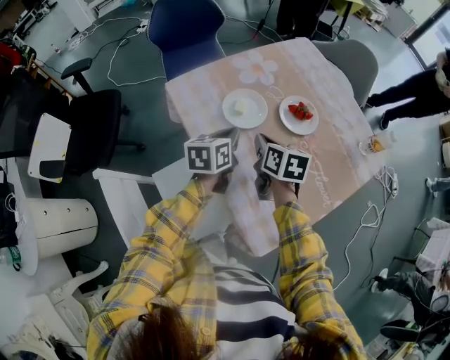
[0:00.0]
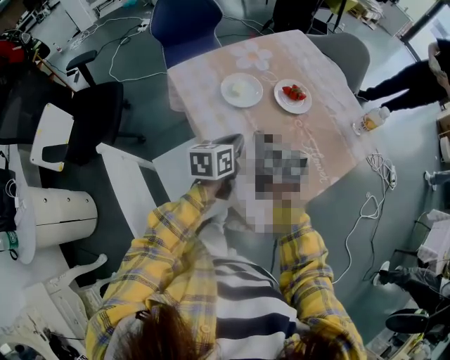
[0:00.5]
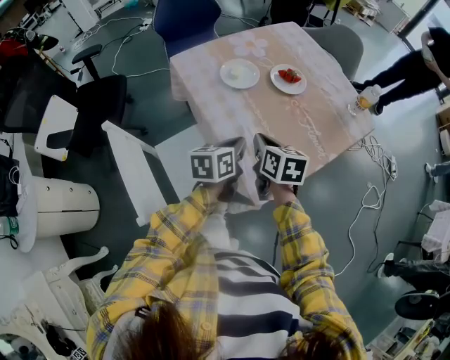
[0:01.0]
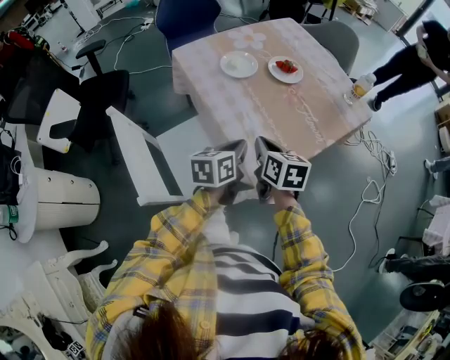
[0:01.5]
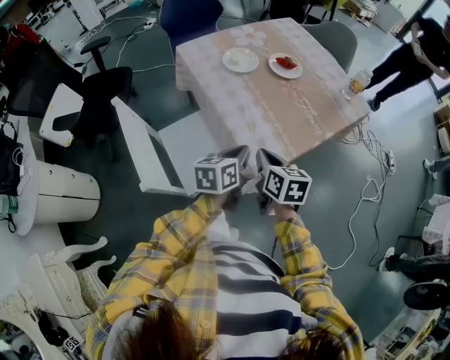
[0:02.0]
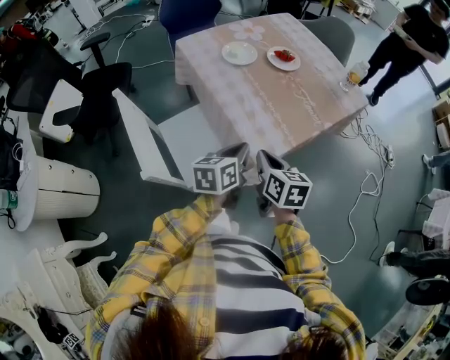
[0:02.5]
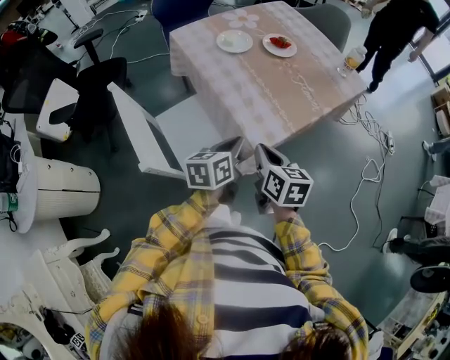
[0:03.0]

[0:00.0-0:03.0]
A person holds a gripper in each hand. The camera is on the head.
0:00.0 to 0:01.5: Both grippers move backward, some 25 cm.
0:01.5 to 0:03.0: Both grippers move backward, some 10 cm.

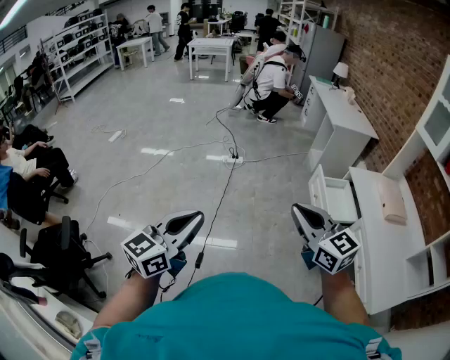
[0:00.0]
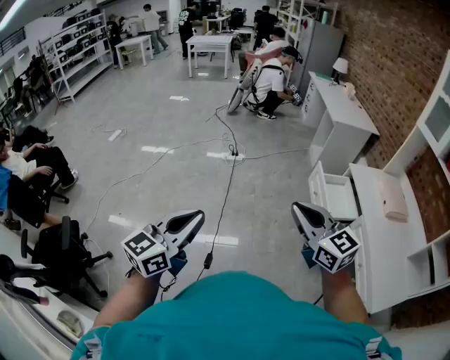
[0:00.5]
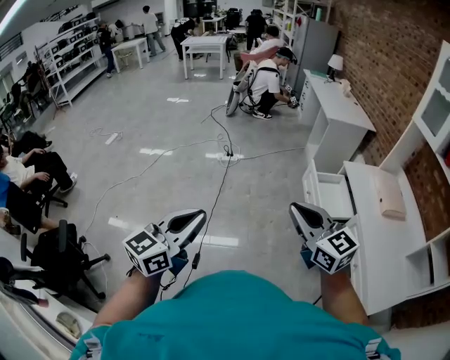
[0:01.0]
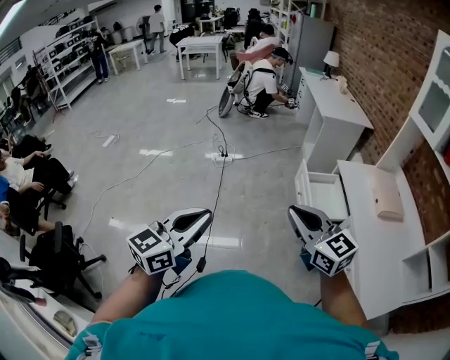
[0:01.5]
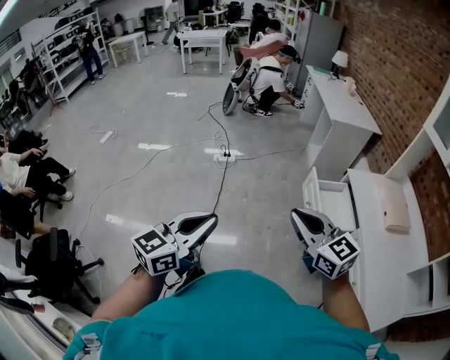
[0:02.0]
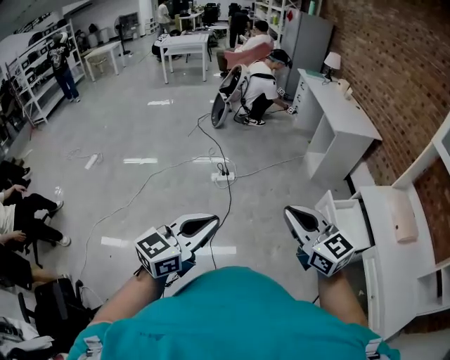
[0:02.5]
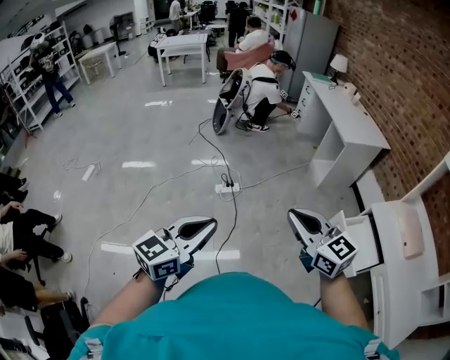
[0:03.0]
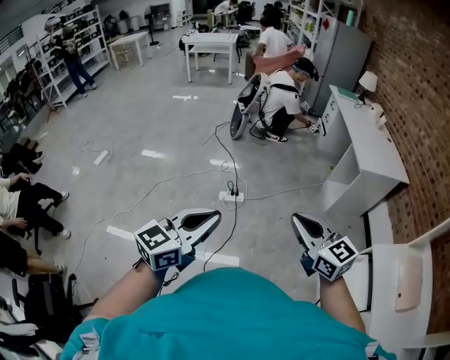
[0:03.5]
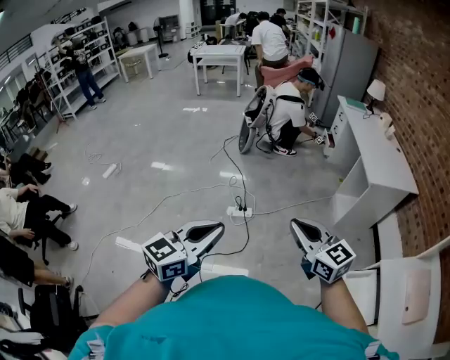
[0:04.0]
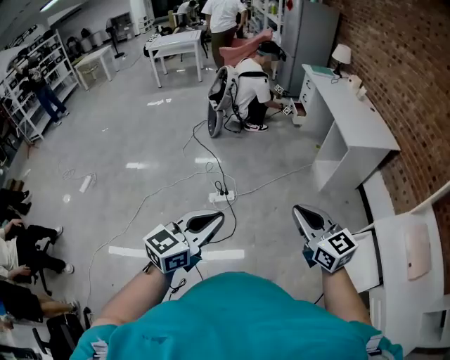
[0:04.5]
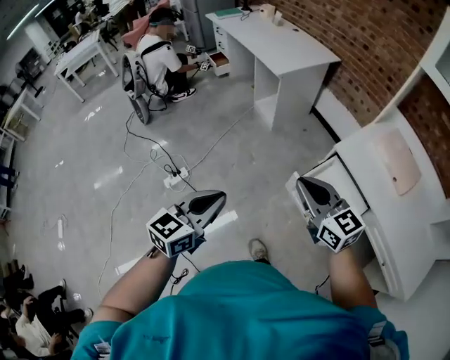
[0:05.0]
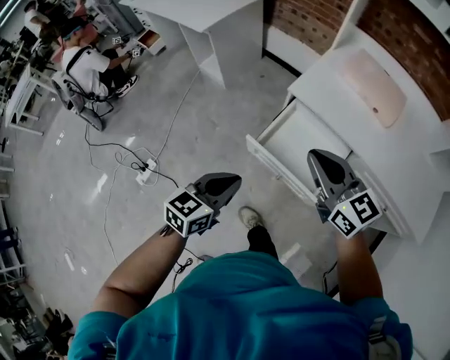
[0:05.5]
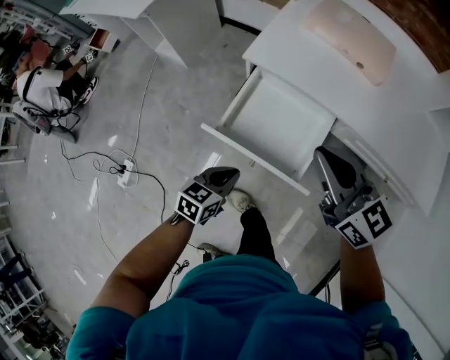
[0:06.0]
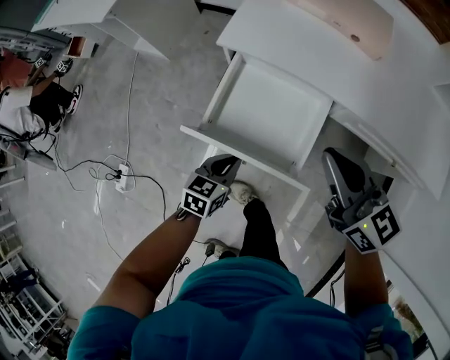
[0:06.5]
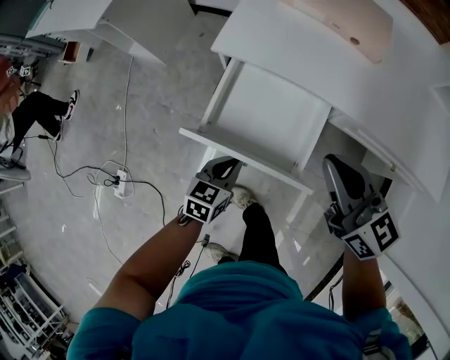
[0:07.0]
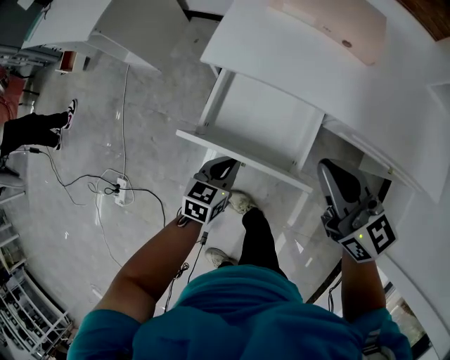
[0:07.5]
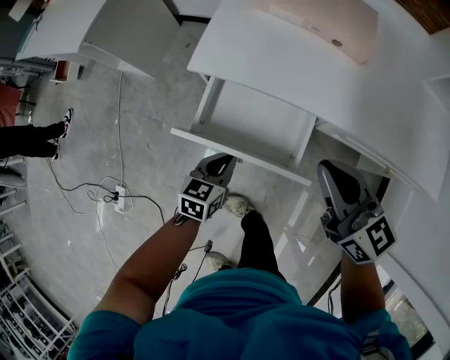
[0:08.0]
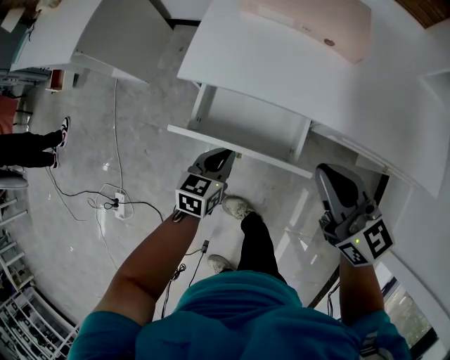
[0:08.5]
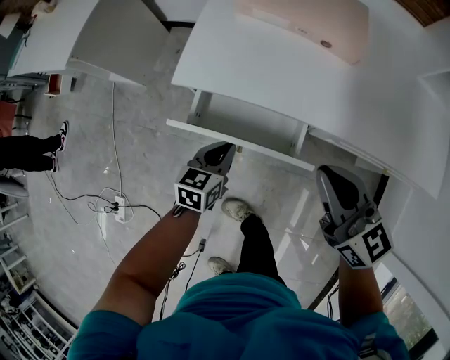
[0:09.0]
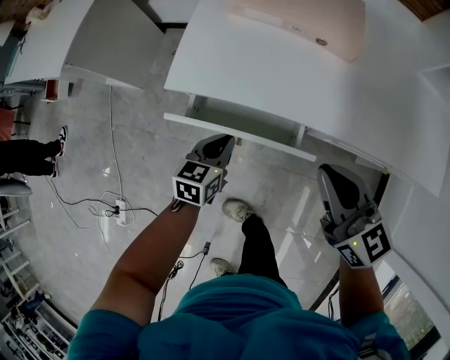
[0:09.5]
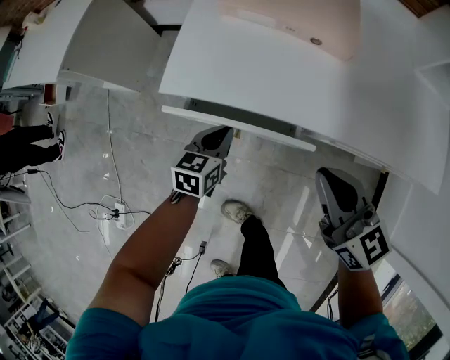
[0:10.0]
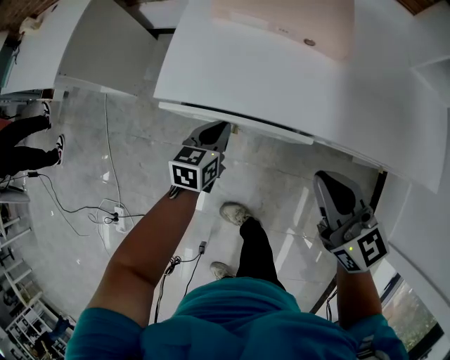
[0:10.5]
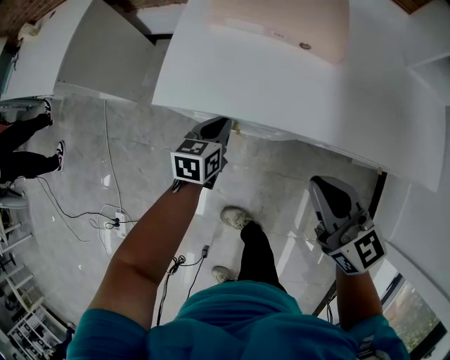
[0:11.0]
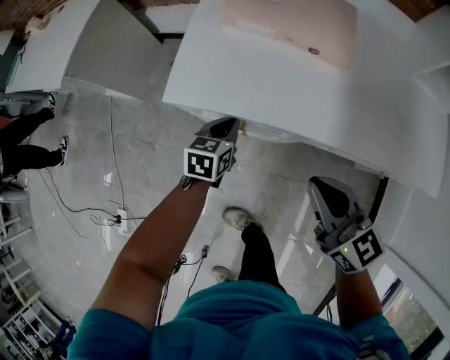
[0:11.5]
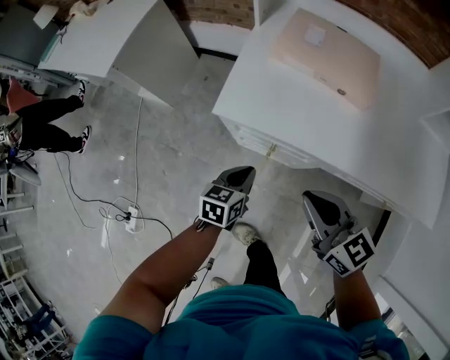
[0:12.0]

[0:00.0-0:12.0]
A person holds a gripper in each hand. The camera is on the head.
0:00.0 to 0:02.0: The right gripper is displaced forward and to the right by some 15 cm. The left gripper goes roughly 20 cm to the right and forward.
0:02.0 to 0:04.0: Both grippers are carried forward, some 50 cm.
0:04.0 to 0:06.0: The pair of grippers is taken about 50 cm. The right gripper swivels some 60 degrees; the left gripper tips its fingers downward by approximately 30 degrees.
0:06.0 to 0:08.0: The right gripper is displaced to the right and downward by about 10 cm. Meanwhile the left gripper heads forward, to the right and downward, covering some 15 cm.
0:08.0 to 0:10.0: The right gripper shifts by roughly 5 cm; the left gripper moves forward, roughly 10 cm.
0:10.0 to 0:12.0: The right gripper moves to the left, some 10 cm; the left gripper changes place by roughly 5 cm.

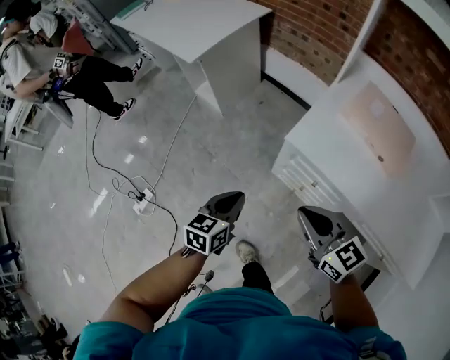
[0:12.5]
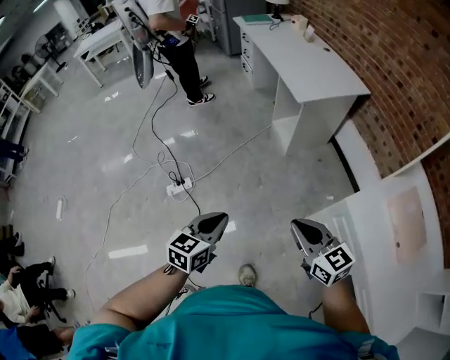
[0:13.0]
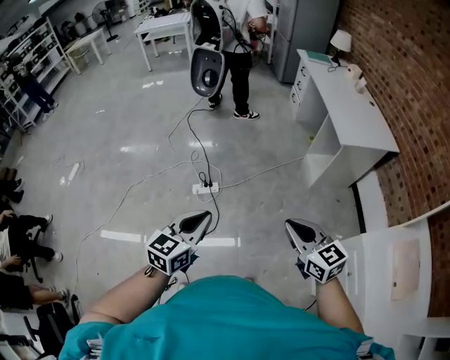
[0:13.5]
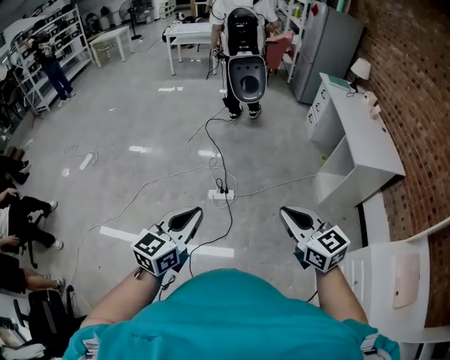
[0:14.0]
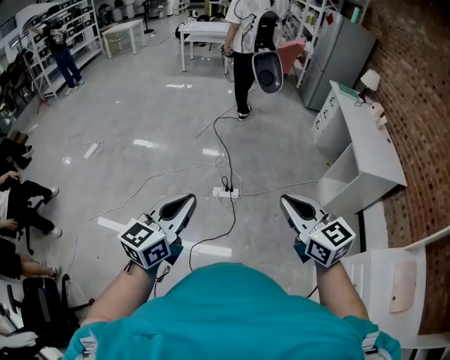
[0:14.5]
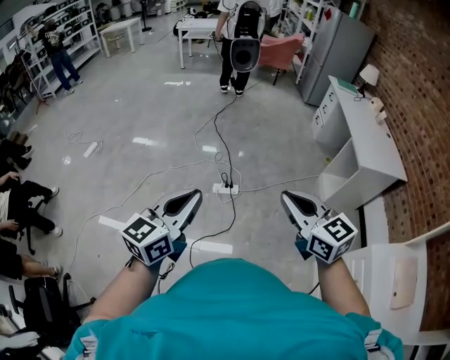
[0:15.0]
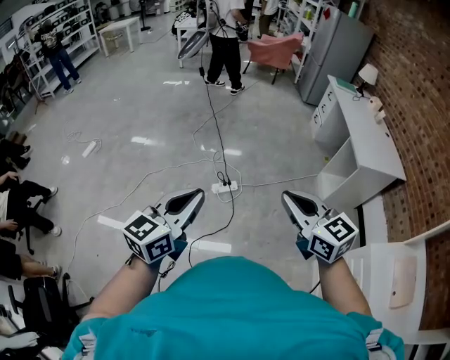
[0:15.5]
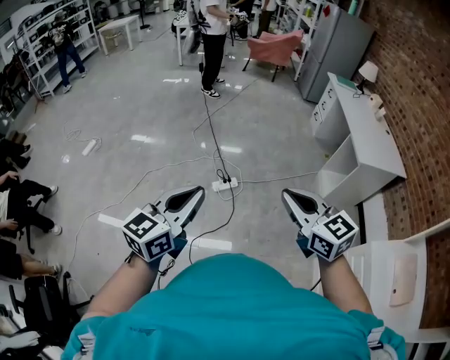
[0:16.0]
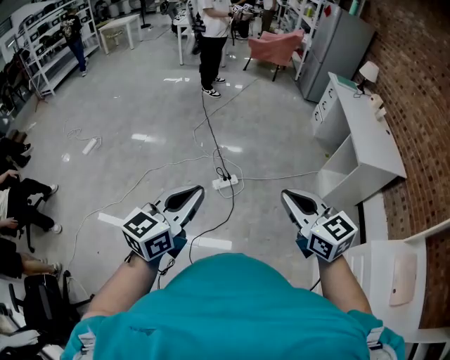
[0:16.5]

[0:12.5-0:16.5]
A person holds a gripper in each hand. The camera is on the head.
0:12.5 to 0:14.5: The pair of grippers is taken some 60 cm. The right gripper swivels some 50 degrees. Meanwhile the left gripper changes its angle by approximately 60 degrees.
0:14.5 to 0:16.5: There are only small adjustments of the grippers.

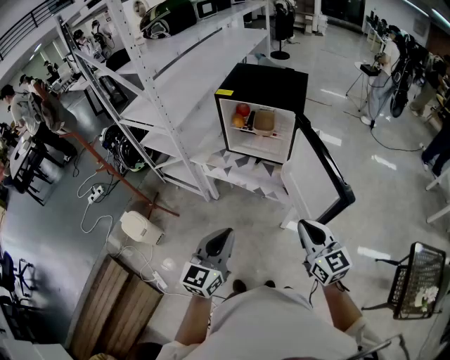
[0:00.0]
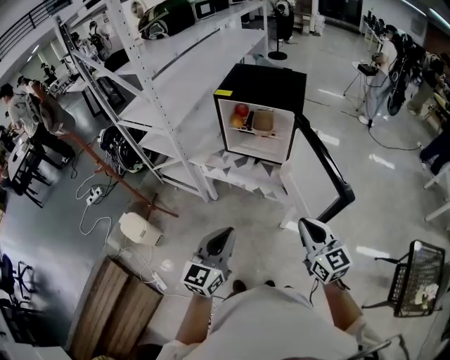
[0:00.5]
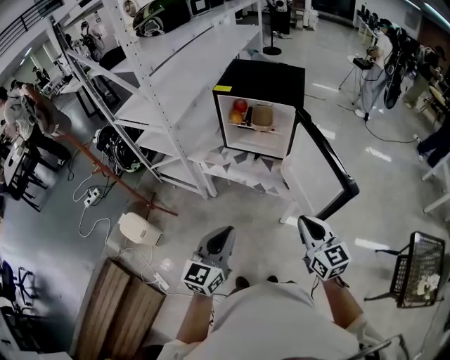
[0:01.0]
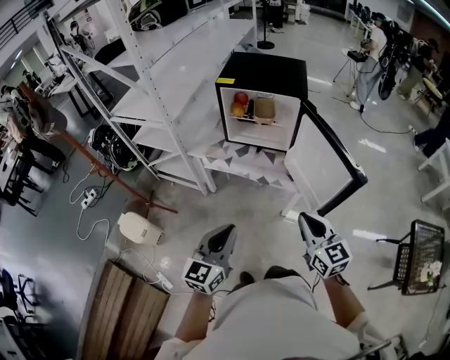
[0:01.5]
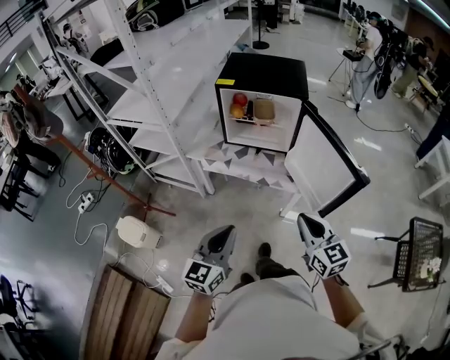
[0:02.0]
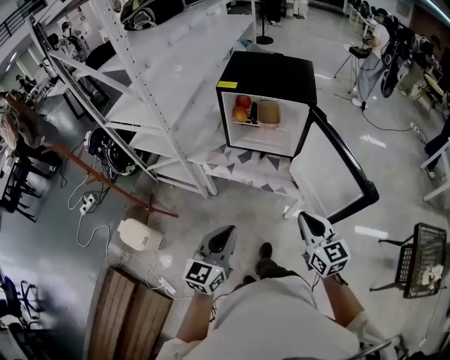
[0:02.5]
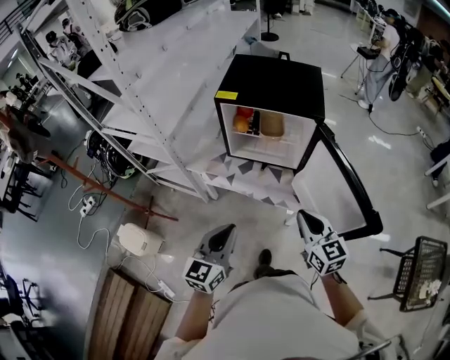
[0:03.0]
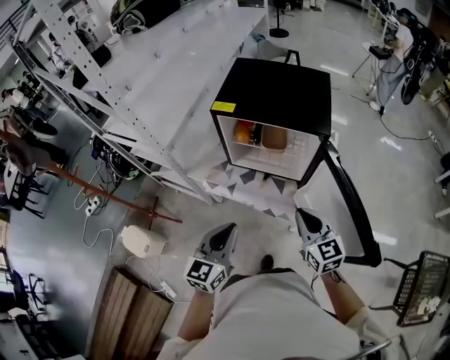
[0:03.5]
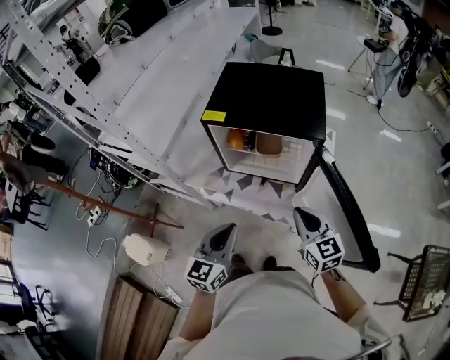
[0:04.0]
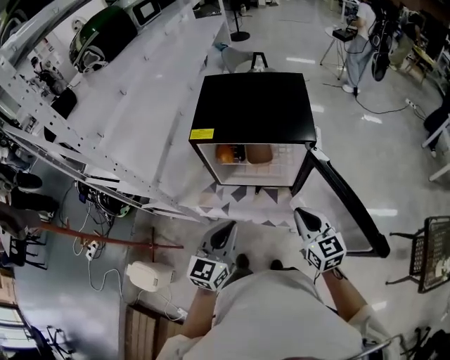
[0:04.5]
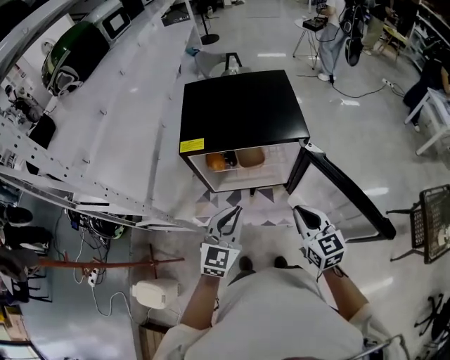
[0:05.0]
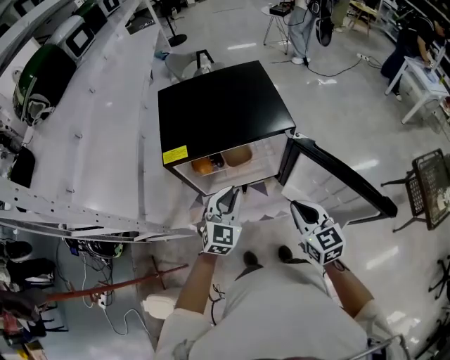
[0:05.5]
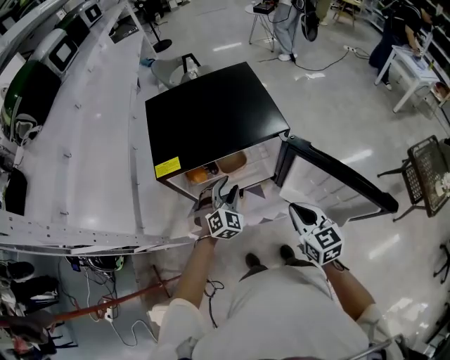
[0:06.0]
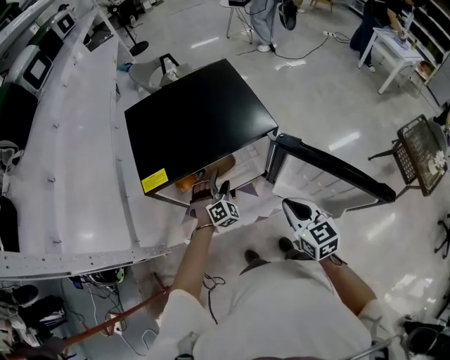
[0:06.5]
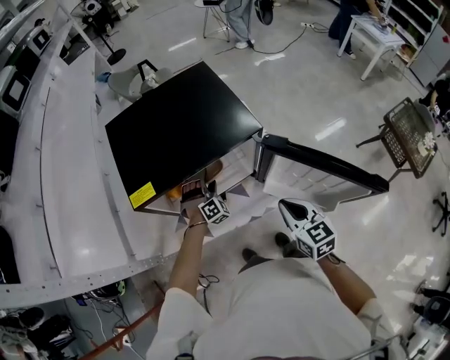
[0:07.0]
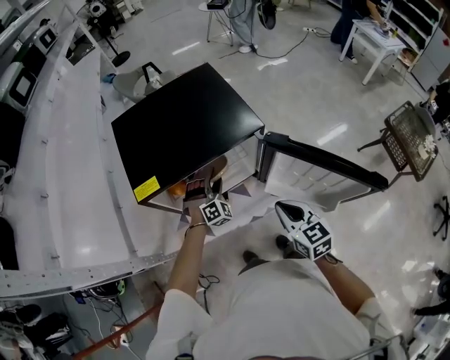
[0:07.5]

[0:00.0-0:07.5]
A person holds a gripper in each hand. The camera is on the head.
0:00.0 to 0:02.0: Both grippers travel together to the left, roughly 10 cm.
0:02.0 to 0:04.0: Both grippers travel together forward, roughly 30 cm.
0:04.0 to 0:05.5: The right gripper turns by some 30 degrees; the left gripper travels forward by some 20 cm, and swivels roughly 40 degrees.
0:05.5 to 0:07.5: The left gripper goes some 20 cm downward and forward, rolls clockwise, seen from behind, by approximately 40 degrees, and opens.
